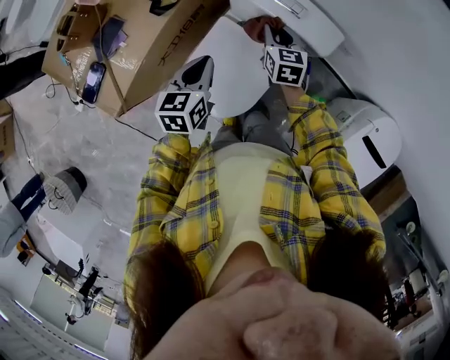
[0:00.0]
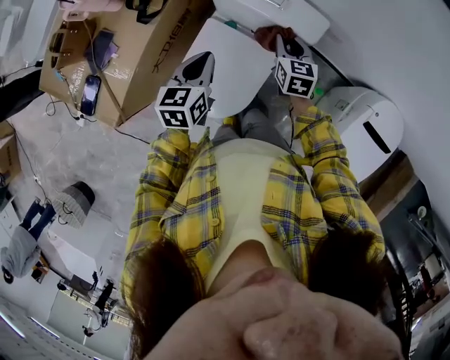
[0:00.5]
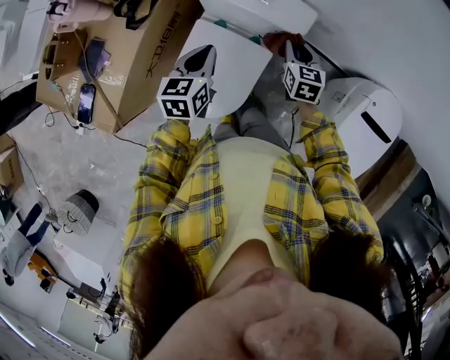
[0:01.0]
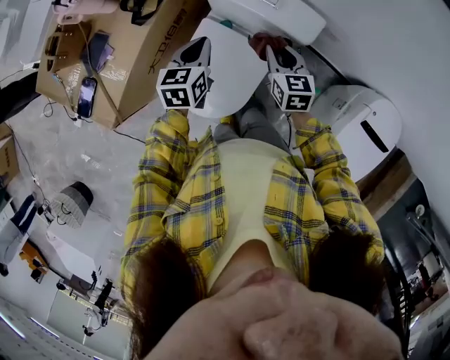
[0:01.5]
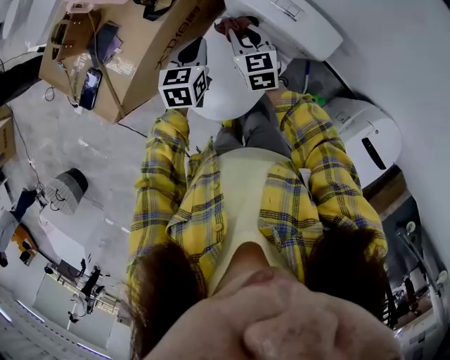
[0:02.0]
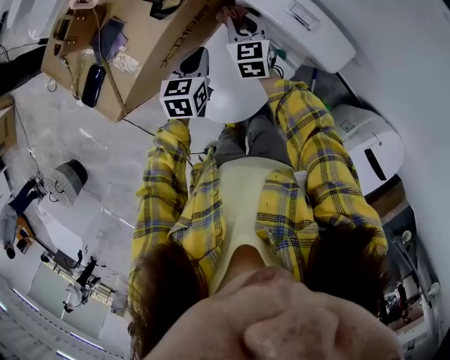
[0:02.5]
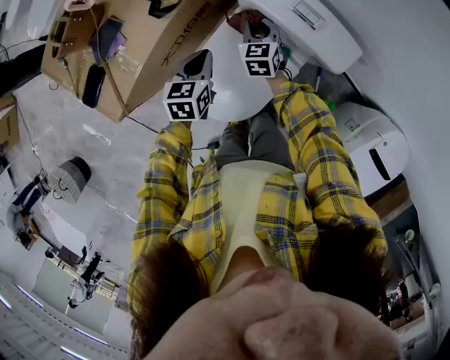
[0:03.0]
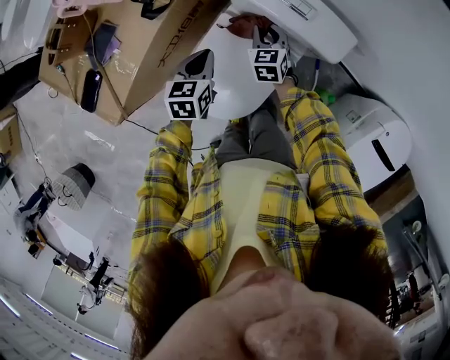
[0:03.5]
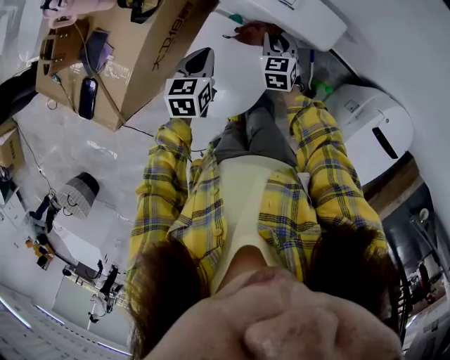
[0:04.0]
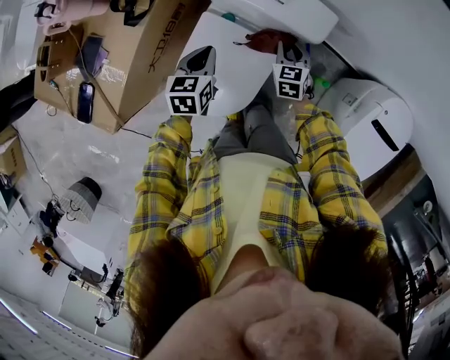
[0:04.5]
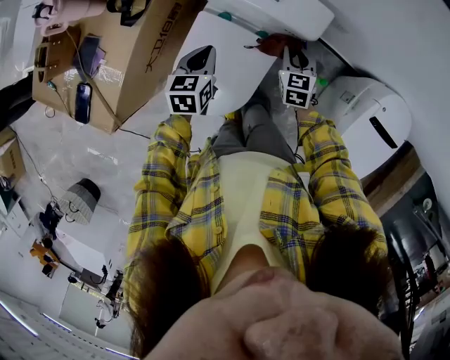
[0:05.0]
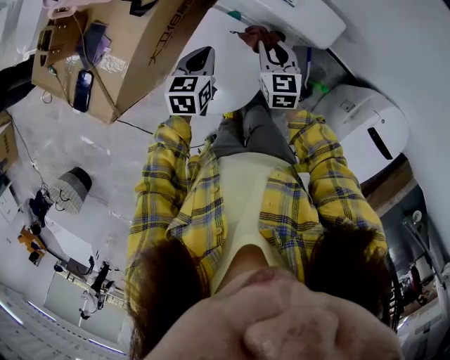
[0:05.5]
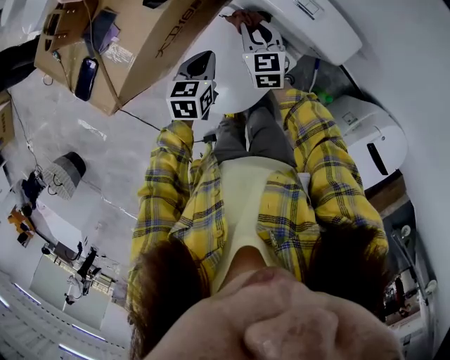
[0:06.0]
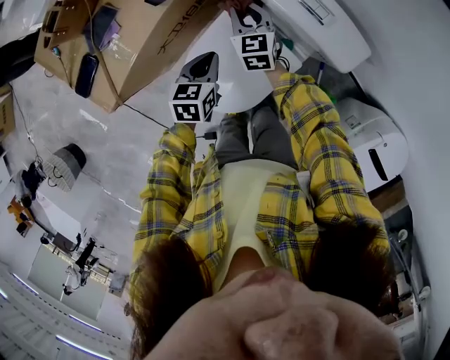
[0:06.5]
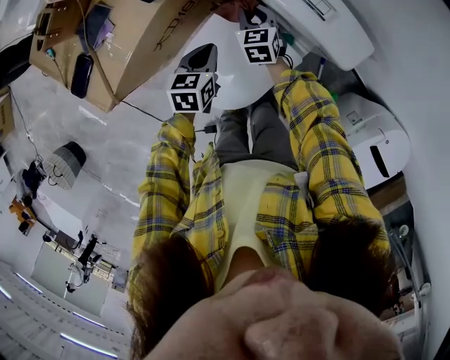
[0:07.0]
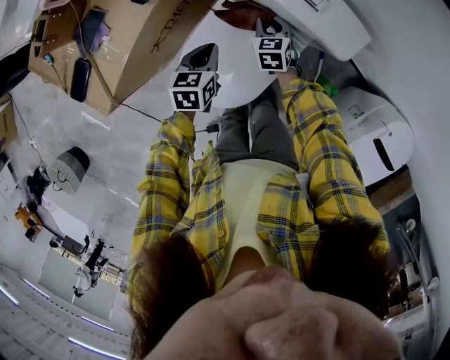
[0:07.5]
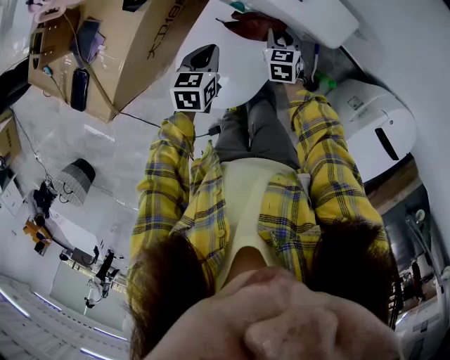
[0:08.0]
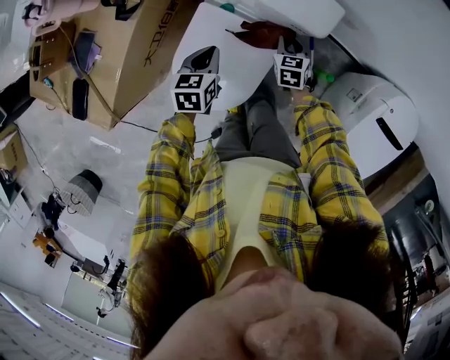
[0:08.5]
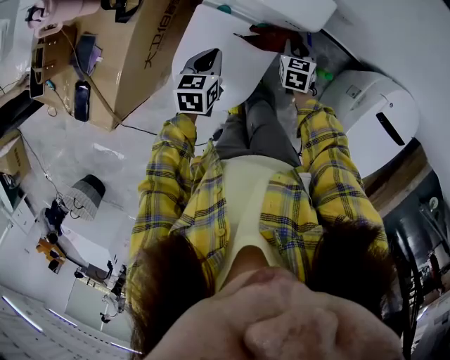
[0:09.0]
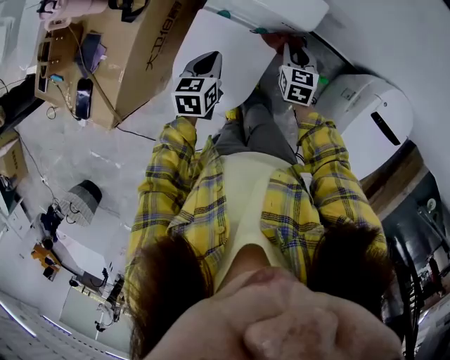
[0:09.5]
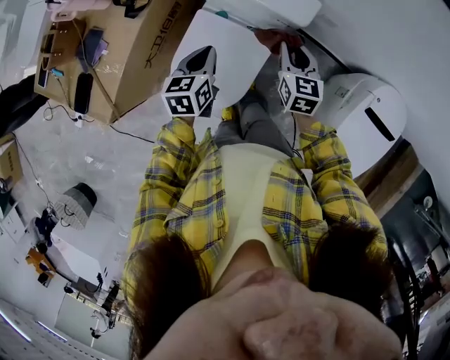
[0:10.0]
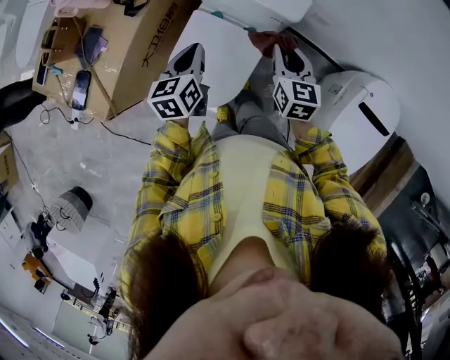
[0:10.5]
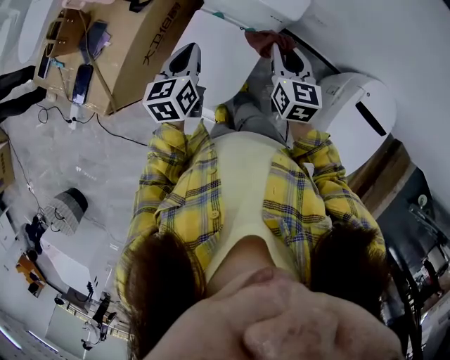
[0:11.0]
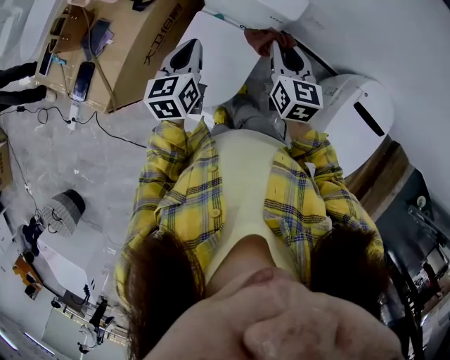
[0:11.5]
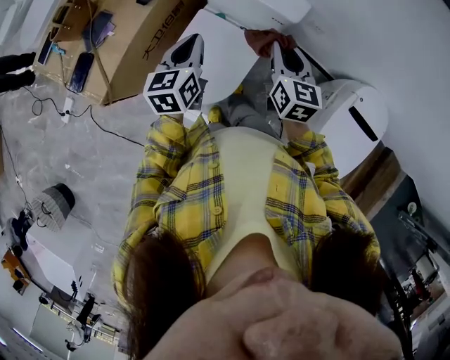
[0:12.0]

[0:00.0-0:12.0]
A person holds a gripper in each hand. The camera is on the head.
0:00.0 to 0:02.0: The right gripper travels to the left by approximately 10 cm. Meanwhile the left gripper shifts approximately 5 cm forward, and goes to the right and returns, approximately 5 cm each way.
0:02.0 to 0:04.0: The left gripper moves about 5 cm. Meanwhile the right gripper shifts approximately 15 cm to the right and downward, and swivels about 20 degrees.
0:04.0 to 0:06.0: The right gripper is displaced to the left and upward by about 10 cm, and rotates roughly 20 degrees.
0:06.0 to 0:08.0: The left gripper ends up approximately 5 cm from where it was, while the right gripper shifts about 15 cm to the right and downward, and turns by roughly 20 degrees.
0:08.0 to 0:10.0: The left gripper moves upward, approximately 10 cm. The right gripper heads upward and to the right, covering about 20 cm, and changes its angle by some 20 degrees.
0:10.0 to 0:12.0: The right gripper shifts about 15 cm upward and backward. Meanwhile the left gripper shifts roughly 10 cm upward.

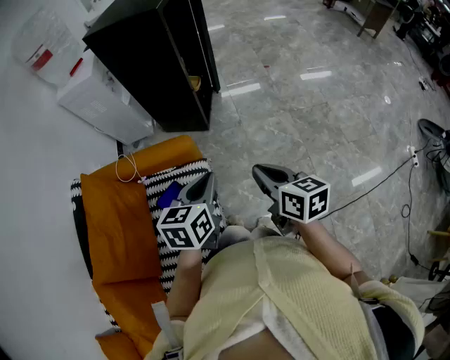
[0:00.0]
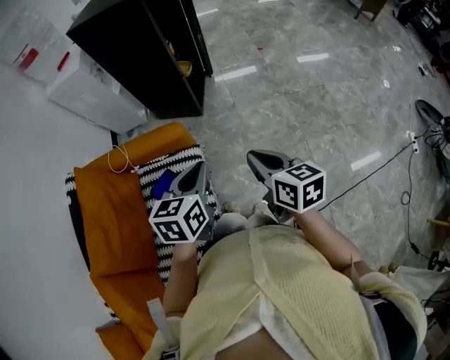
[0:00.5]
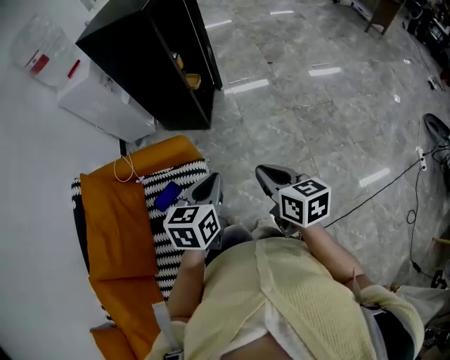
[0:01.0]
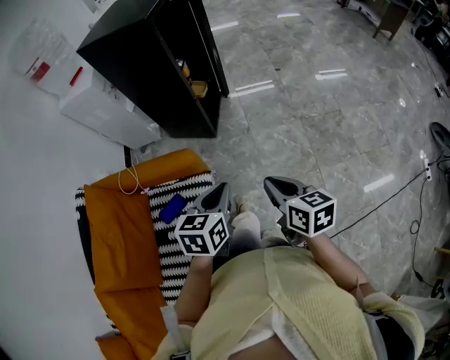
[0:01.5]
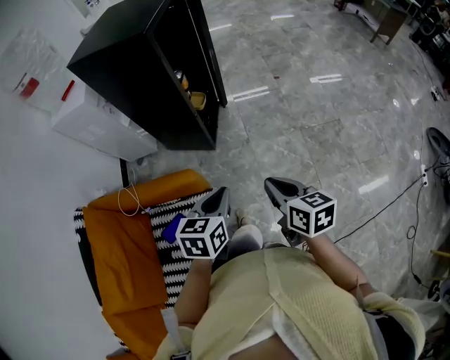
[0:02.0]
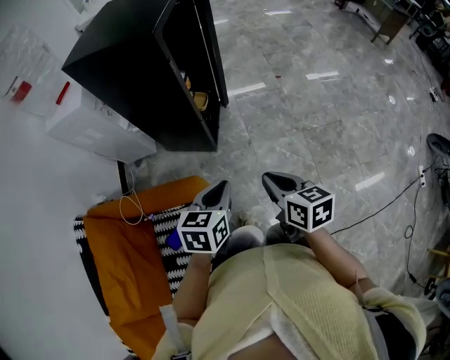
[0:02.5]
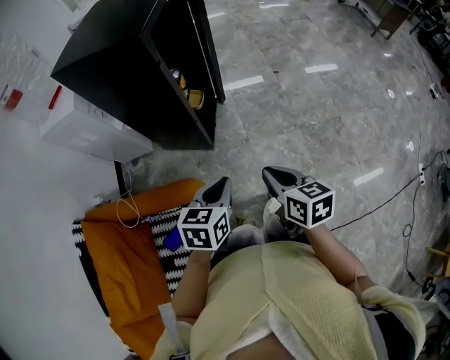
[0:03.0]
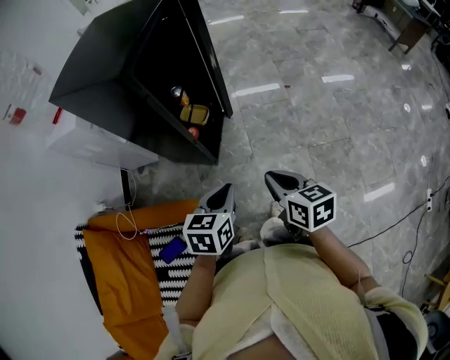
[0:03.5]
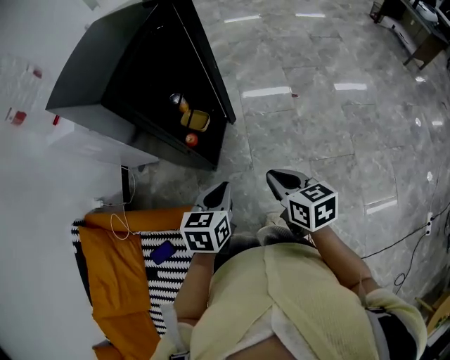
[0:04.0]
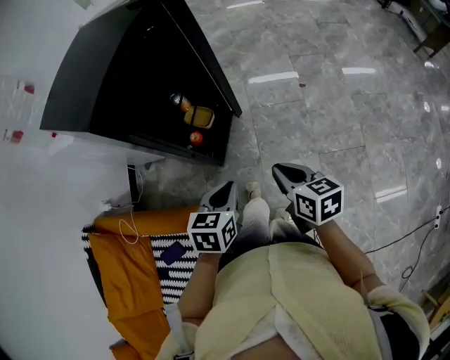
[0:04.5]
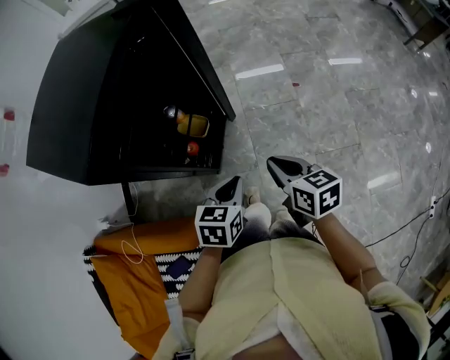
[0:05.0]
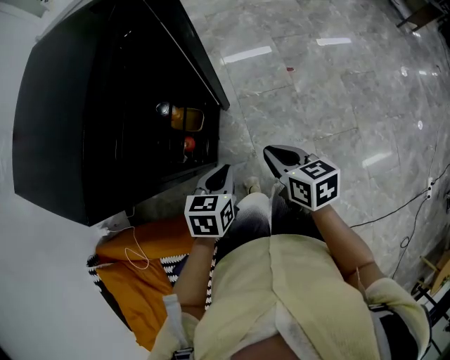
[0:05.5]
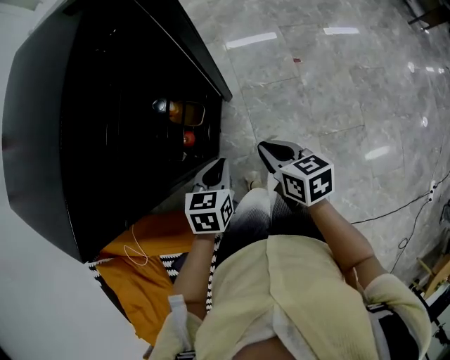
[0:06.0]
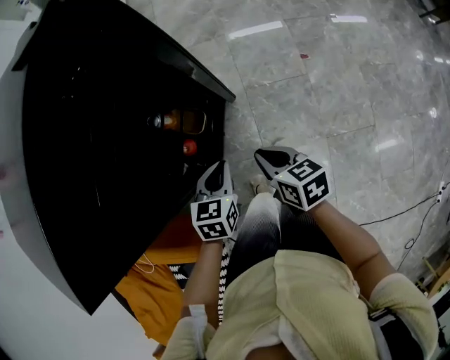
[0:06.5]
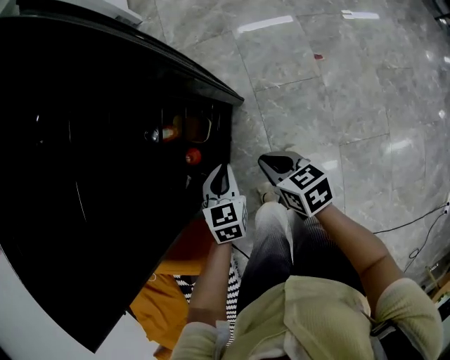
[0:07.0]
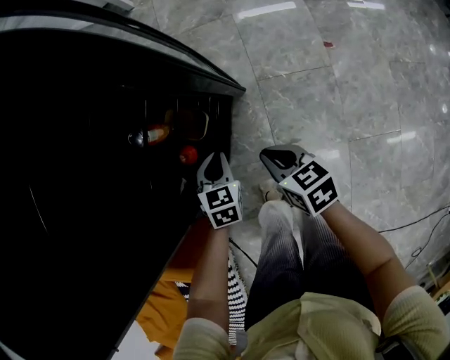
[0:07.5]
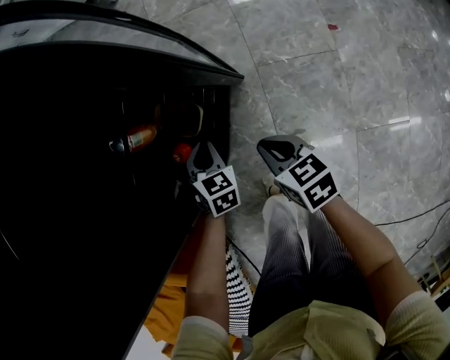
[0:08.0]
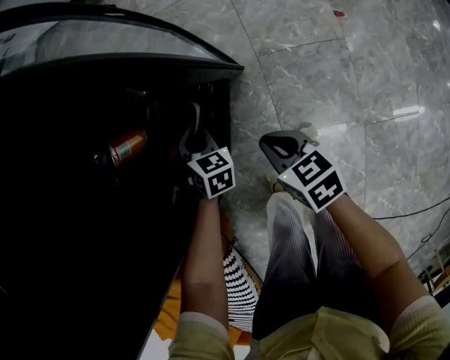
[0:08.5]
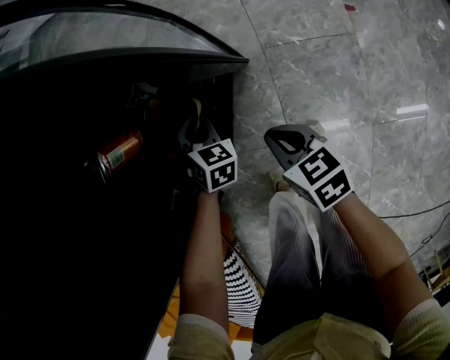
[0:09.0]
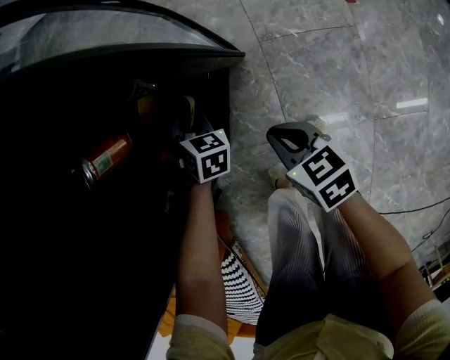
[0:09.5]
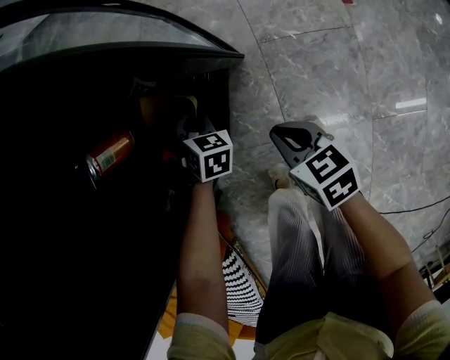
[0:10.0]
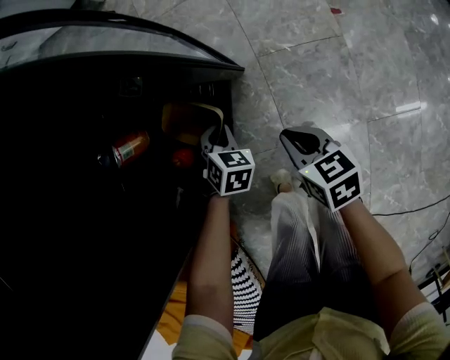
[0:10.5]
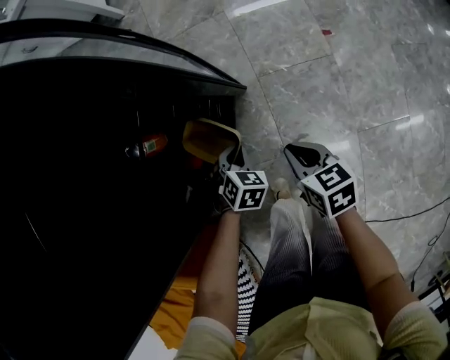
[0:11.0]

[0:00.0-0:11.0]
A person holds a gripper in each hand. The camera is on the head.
0:00.0 to 0:02.0: Both grippers move forward, some 15 cm.
0:02.0 to 0:03.5: Both grippers travel together forward, about 15 cm.
0:03.5 to 0:05.5: The two grippers go roughly 25 cm forward.
0:05.5 to 0:07.5: The two grippers go about 25 cm downward. The left gripper rotates approximately 30 degrees.
0:07.5 to 0:09.0: The left gripper moves downward and forward, about 15 cm, and turns by some 20 degrees. The right gripper shifts about 10 cm downward.
0:09.0 to 0:11.0: The left gripper heads backward and upward, covering roughly 15 cm; the right gripper heads upward and backward, covering roughly 10 cm.

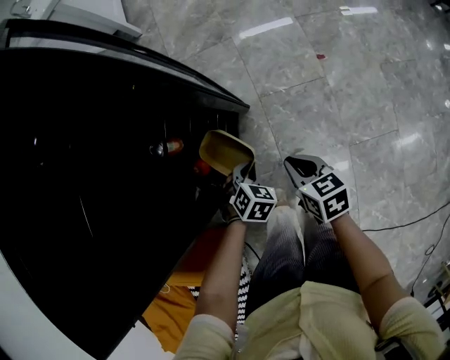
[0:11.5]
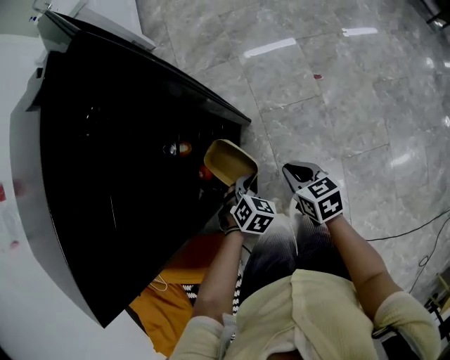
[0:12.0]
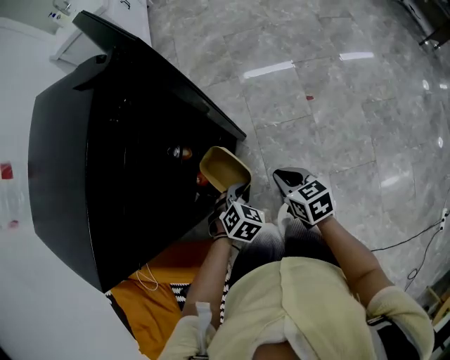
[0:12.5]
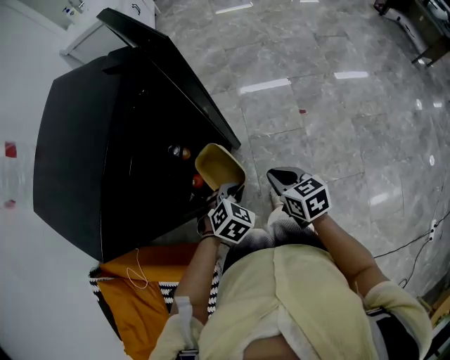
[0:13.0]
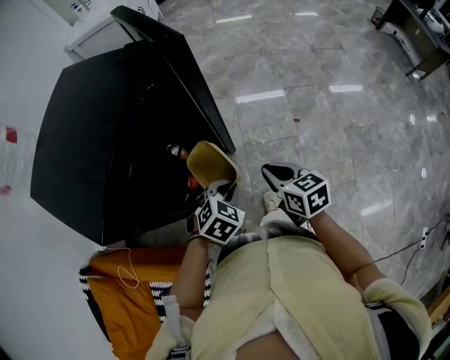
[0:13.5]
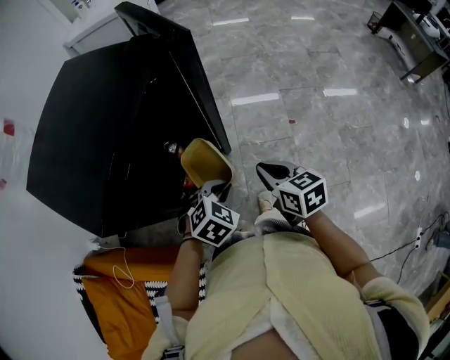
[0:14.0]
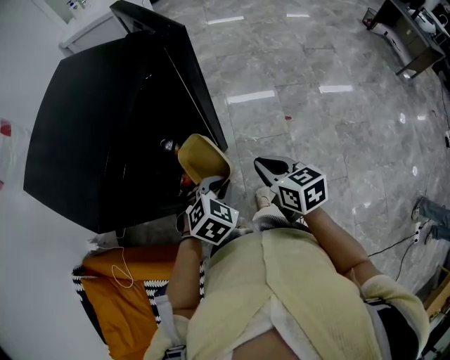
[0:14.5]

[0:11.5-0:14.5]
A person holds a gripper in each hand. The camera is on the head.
0:11.5 to 0:13.0: The two grippers go approximately 20 cm upward.
0:13.0 to 0:14.5: The grippers both shift upward by some 10 cm.

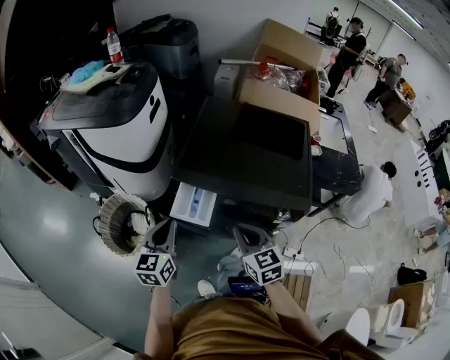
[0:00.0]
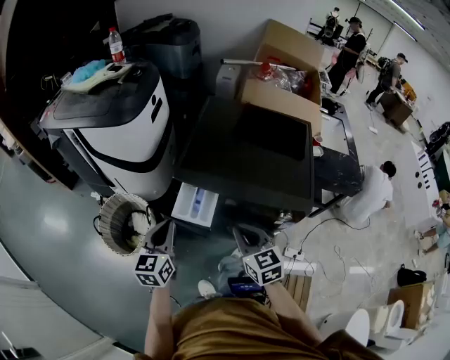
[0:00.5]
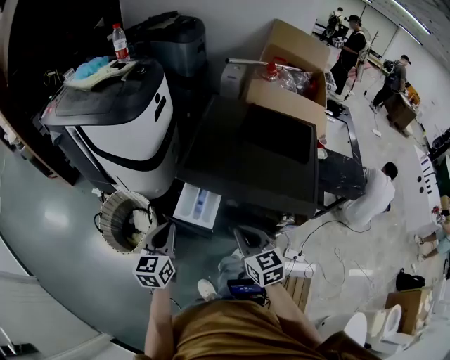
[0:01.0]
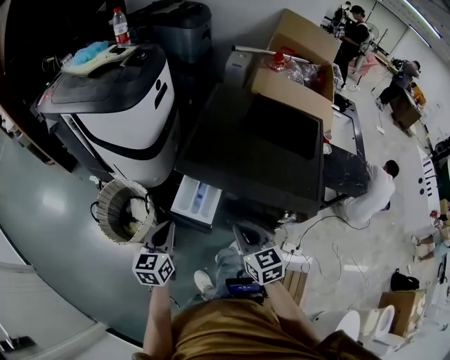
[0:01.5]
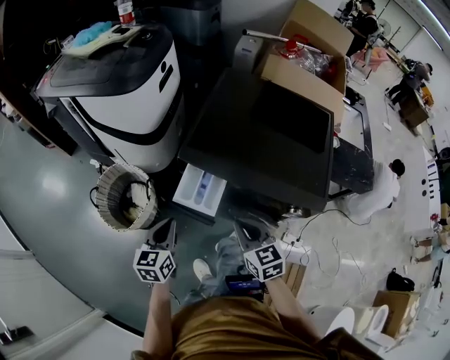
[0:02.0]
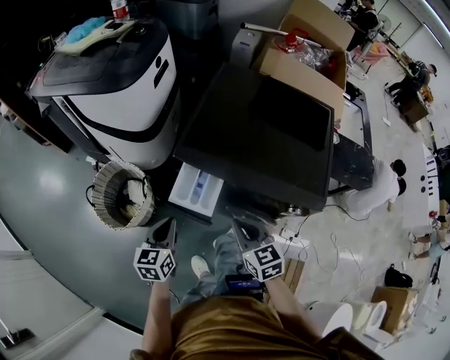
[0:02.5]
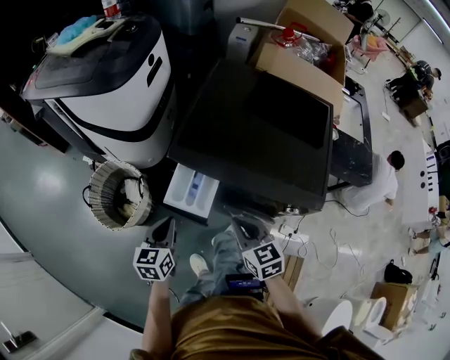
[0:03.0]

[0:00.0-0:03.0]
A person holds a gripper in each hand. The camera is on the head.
0:00.0 to 0:01.5: The left gripper shifts about 5 cm downward.
0:01.5 to 0:03.0: The left gripper is displaced downward by roughly 5 cm.
